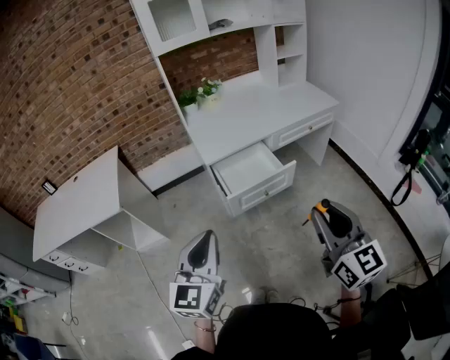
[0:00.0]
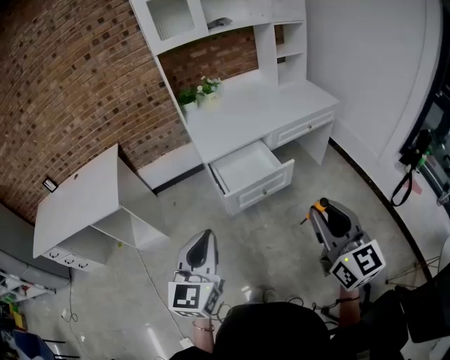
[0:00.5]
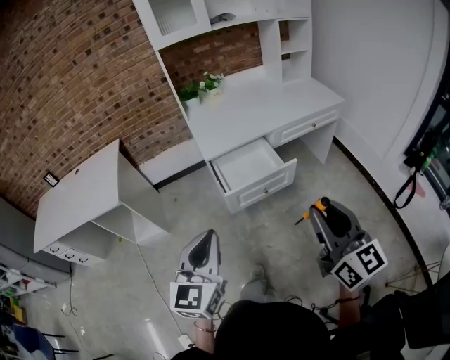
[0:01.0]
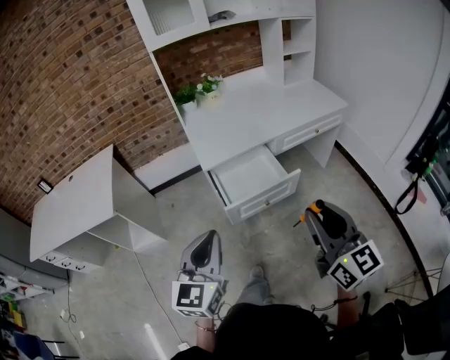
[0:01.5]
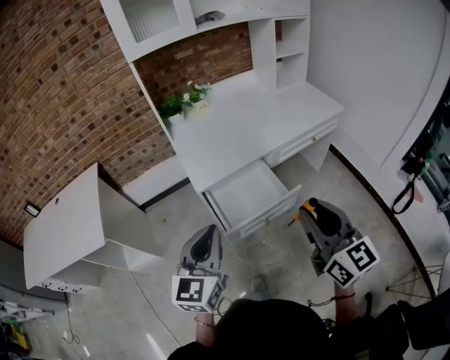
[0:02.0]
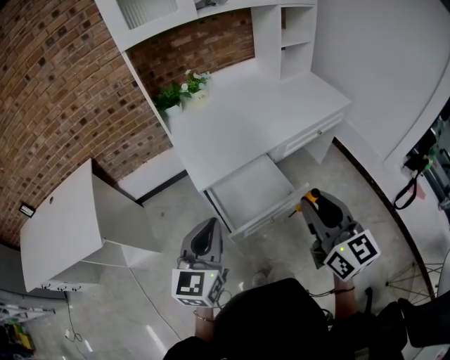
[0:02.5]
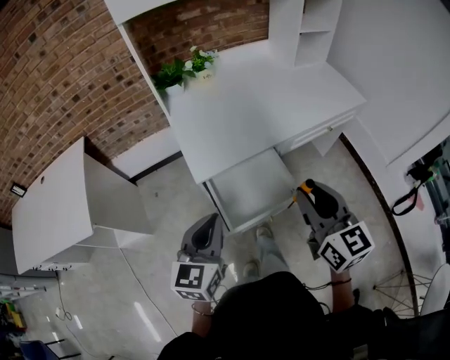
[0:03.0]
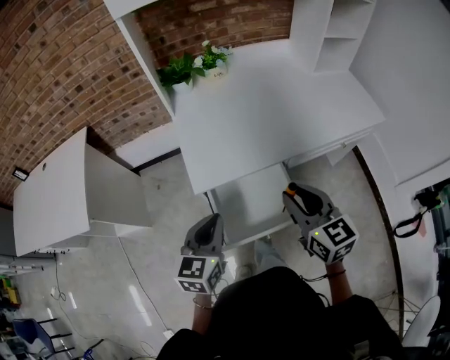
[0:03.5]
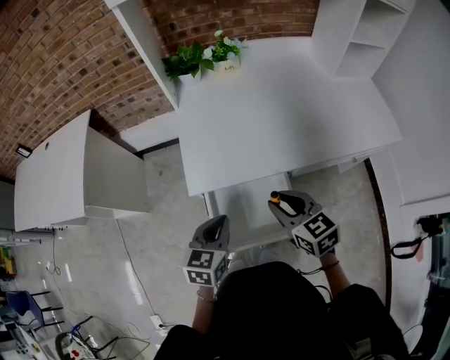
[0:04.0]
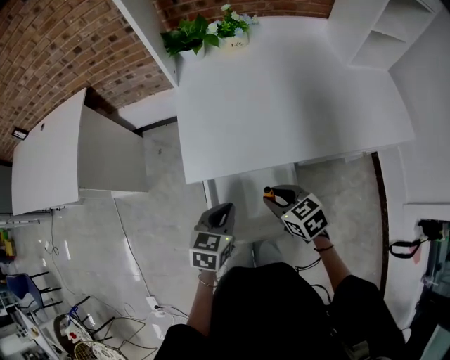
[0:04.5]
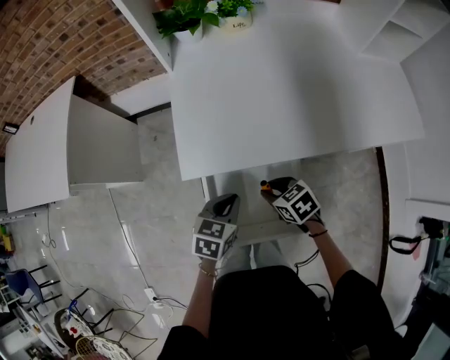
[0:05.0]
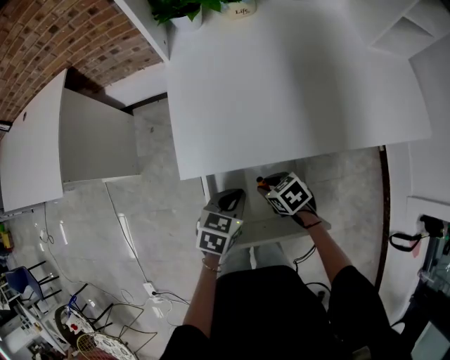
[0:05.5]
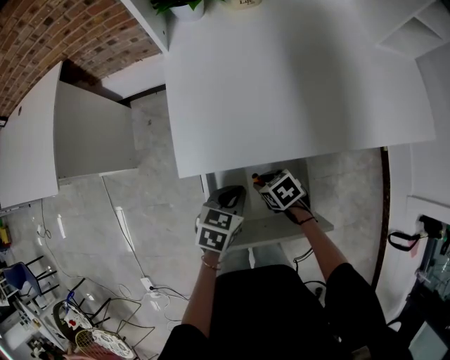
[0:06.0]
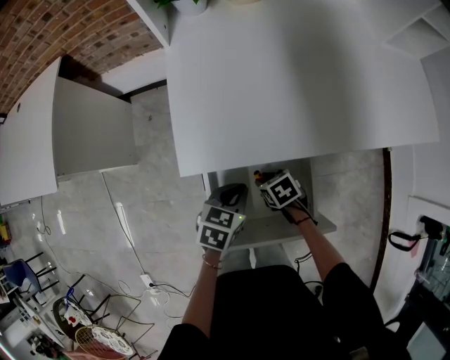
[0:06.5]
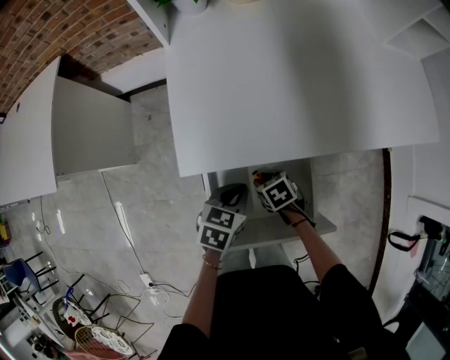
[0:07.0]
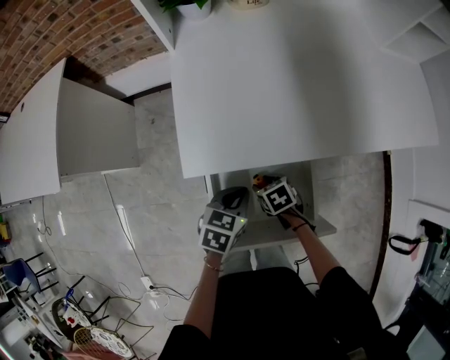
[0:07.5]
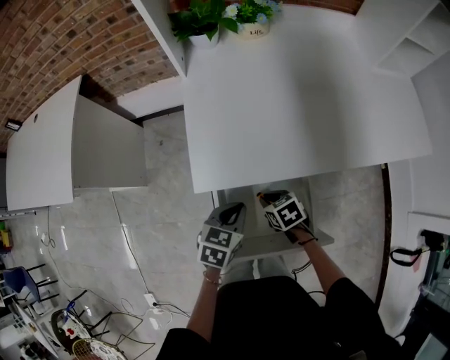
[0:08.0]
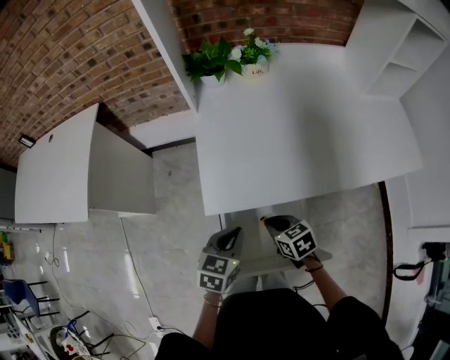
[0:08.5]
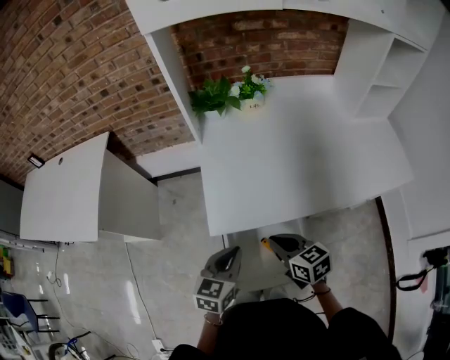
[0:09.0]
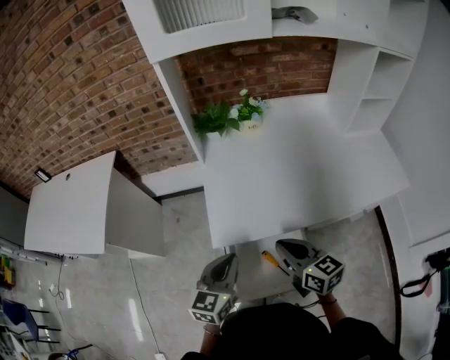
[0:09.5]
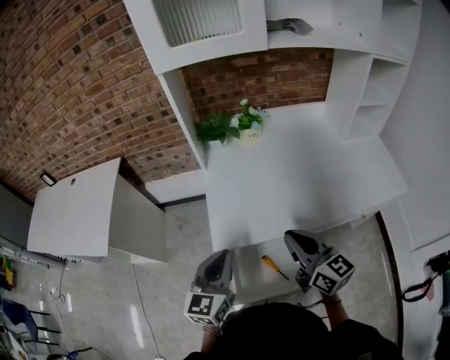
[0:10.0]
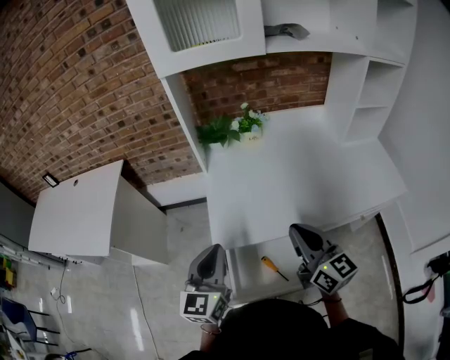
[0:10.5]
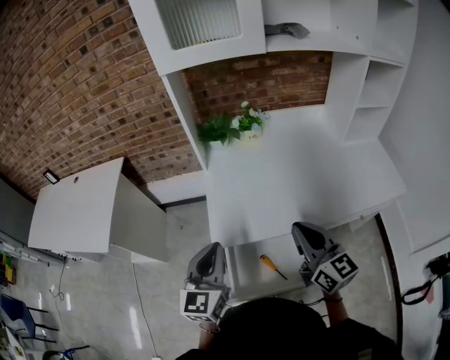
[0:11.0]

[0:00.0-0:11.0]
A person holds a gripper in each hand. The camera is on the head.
0:00.0 to 0:02.0: Both grippers travel together forward, approximately 20 cm.
0:02.0 to 0:03.5: Both grippers move forward and downward, about 25 cm. The right gripper rotates some 20 degrees, while the left gripper turns by some 20 degrees.
0:03.5 to 0:05.5: The right gripper moves downward, approximately 35 cm, and tips its fingers downward by about 40 degrees; the left gripper is displaced downward and to the right by about 25 cm, and swivels about 30 degrees.
0:05.5 to 0:07.5: The right gripper heads downward, covering approximately 5 cm.
0:07.5 to 0:09.0: The right gripper heads upward, covering approximately 30 cm, angles its fingers upward, by roughly 30 degrees, and closes up. The left gripper heads upward, covering about 15 cm, and swivels about 20 degrees.
0:09.0 to 0:11.0: The left gripper is displaced upward by about 15 cm, and rotates roughly 30 degrees; the right gripper heads upward and to the right, covering roughly 20 cm, and points its fingers approximately 30 degrees further upward.

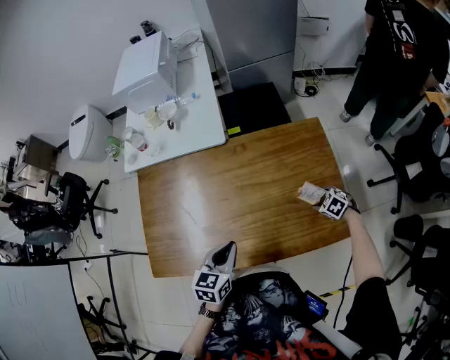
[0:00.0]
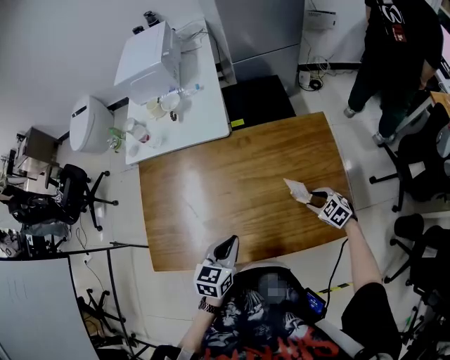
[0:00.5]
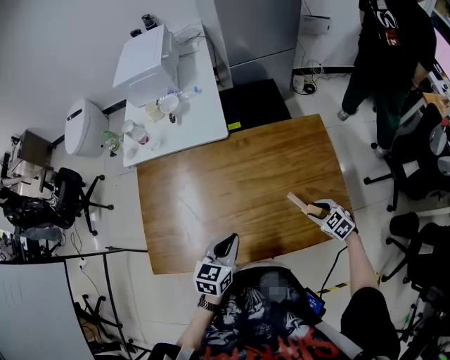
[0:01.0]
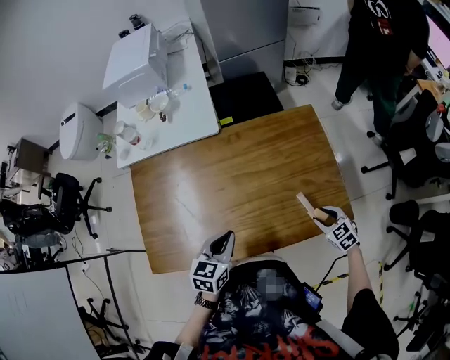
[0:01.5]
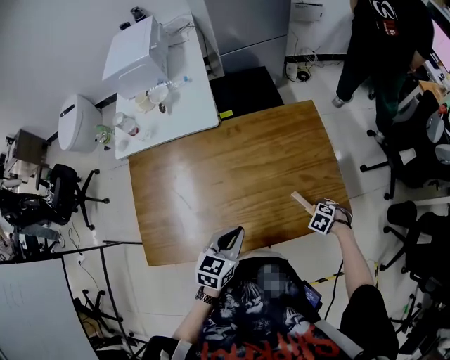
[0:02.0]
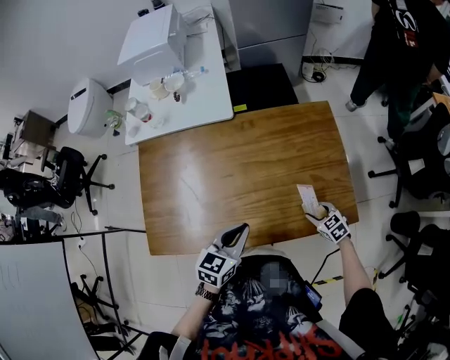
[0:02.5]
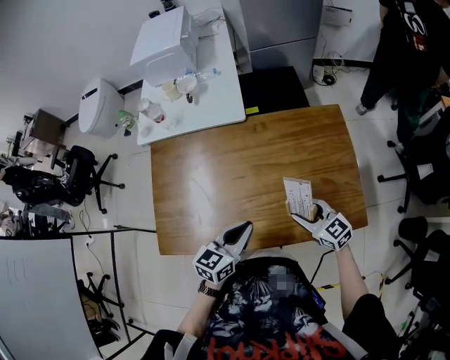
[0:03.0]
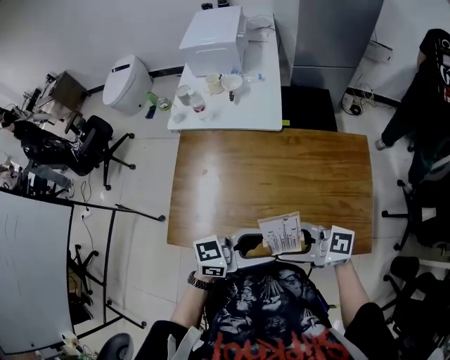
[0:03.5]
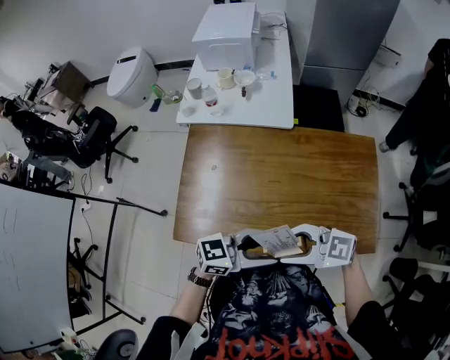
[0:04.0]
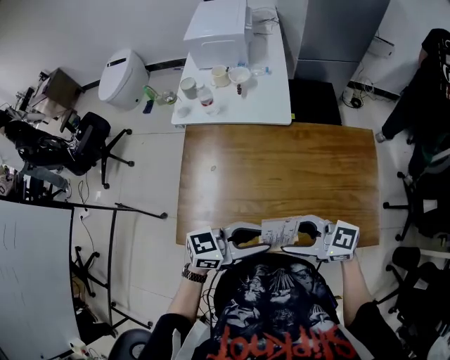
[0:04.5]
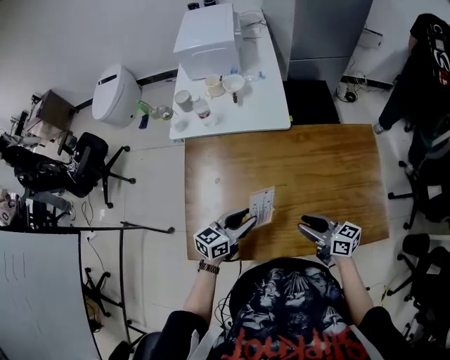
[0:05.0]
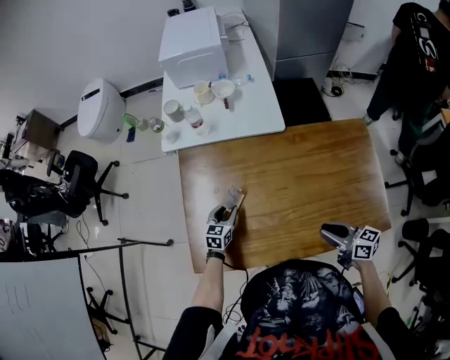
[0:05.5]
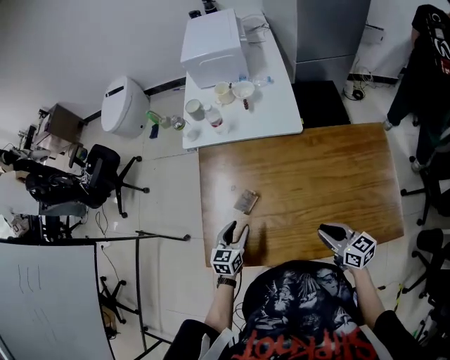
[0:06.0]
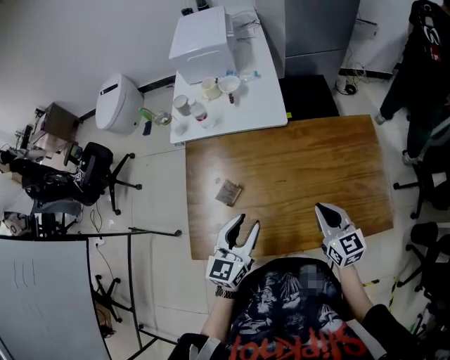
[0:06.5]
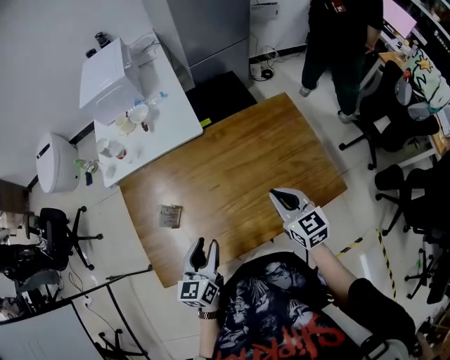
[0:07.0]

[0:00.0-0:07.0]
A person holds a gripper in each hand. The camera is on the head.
0:00.0 to 0:02.0: The right gripper travels upward and back again, approximately 10 cm each way.
0:02.0 to 0:03.5: The right gripper ends up roughly 50 cm from where it was, and angles its fingers upward, by some 80 degrees, while the left gripper goes about 10 cm upward, and angles its fingers upward, by roughly 40 degrees.
0:03.5 to 0:05.0: Both grippers move downward, some 20 cm. The left gripper swivels approximately 20 degrees. The right gripper rotates some 50 degrees.
0:05.0 to 0:07.0: The right gripper moves to the right and upward, approximately 15 cm, and rotates about 50 degrees. The left gripper heads backward, covering some 5 cm, and reaches roughly 20 cm downward, then returns.

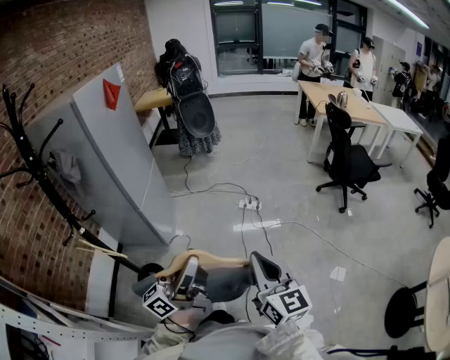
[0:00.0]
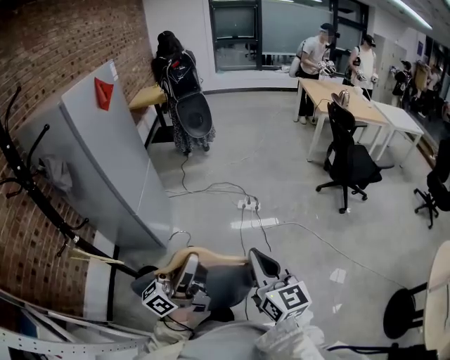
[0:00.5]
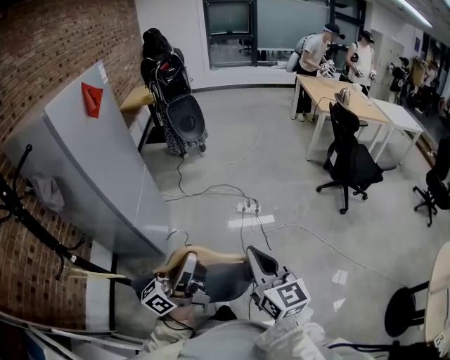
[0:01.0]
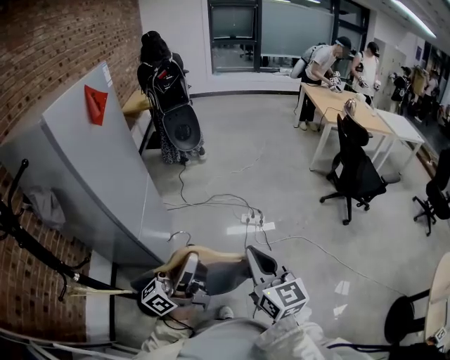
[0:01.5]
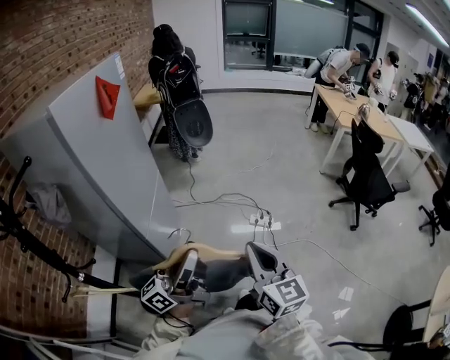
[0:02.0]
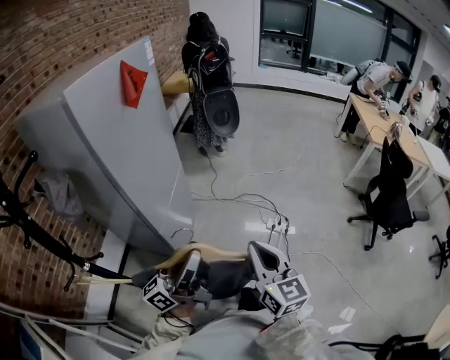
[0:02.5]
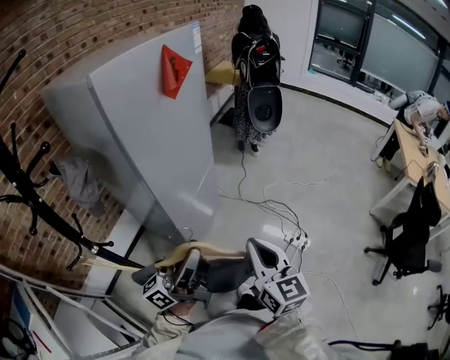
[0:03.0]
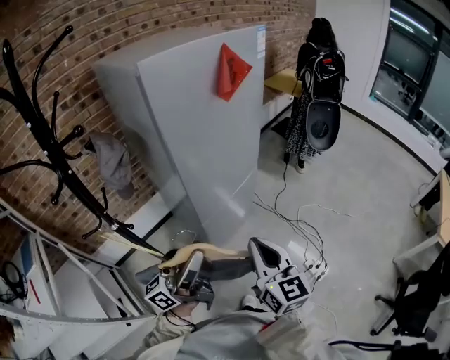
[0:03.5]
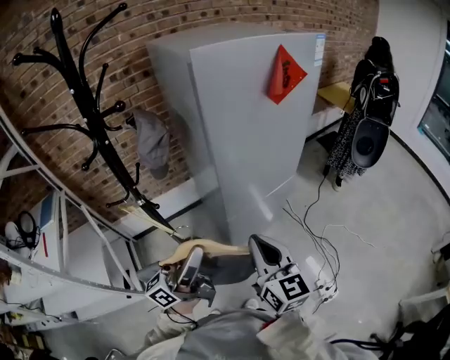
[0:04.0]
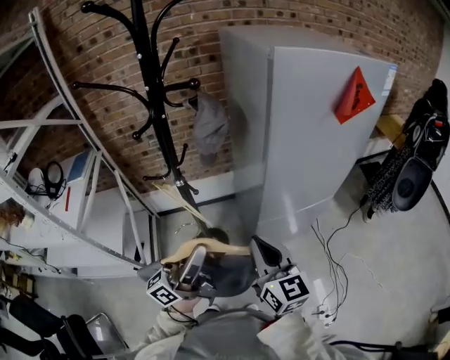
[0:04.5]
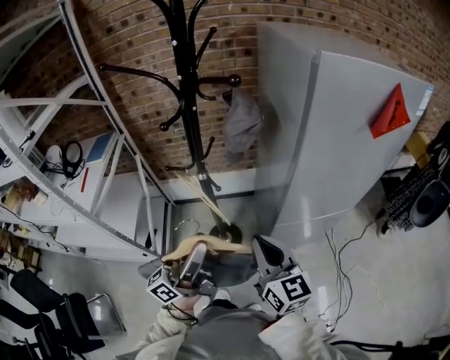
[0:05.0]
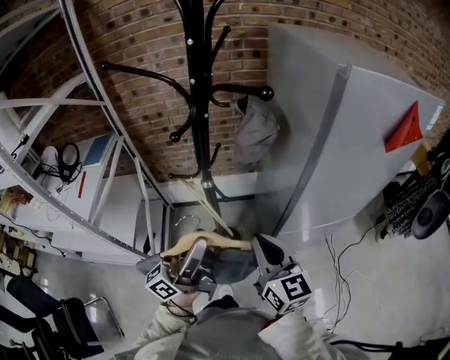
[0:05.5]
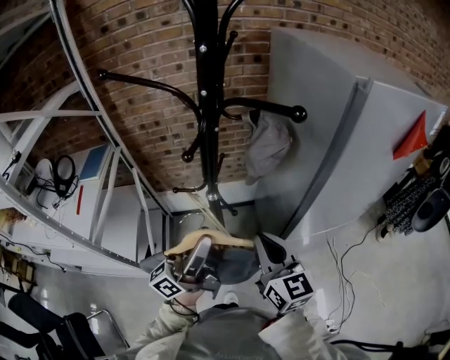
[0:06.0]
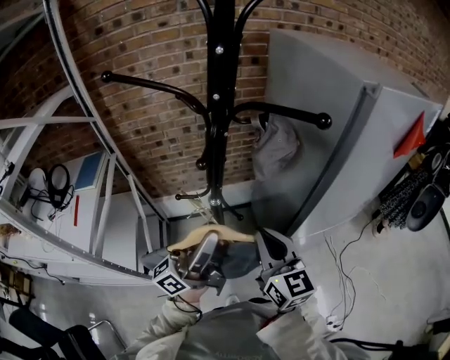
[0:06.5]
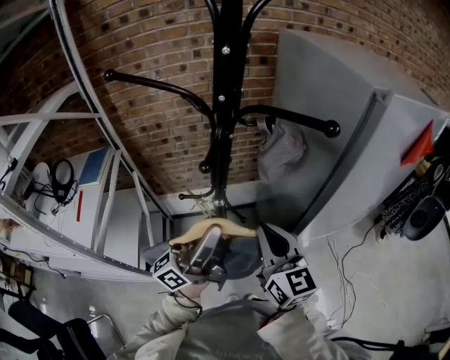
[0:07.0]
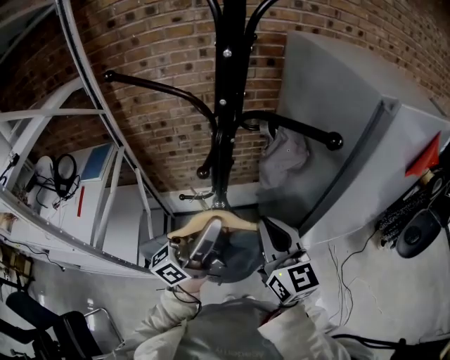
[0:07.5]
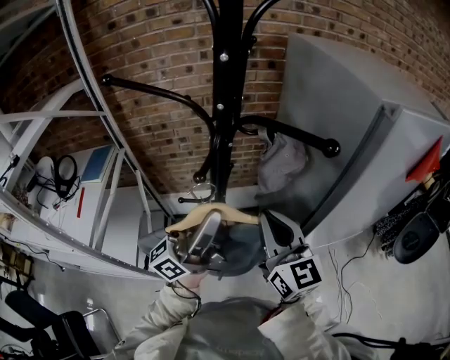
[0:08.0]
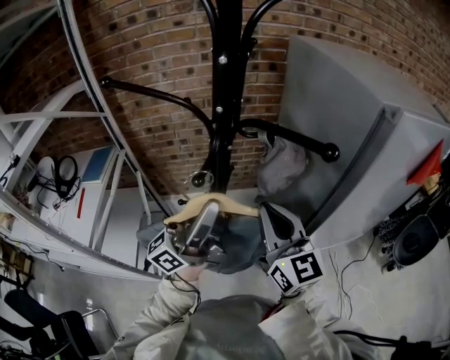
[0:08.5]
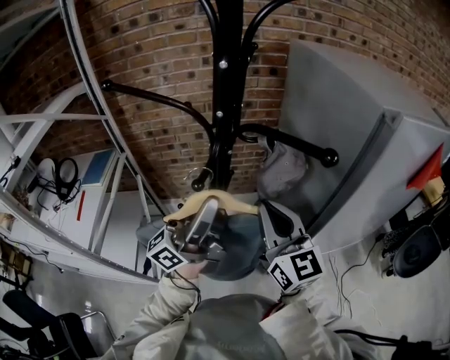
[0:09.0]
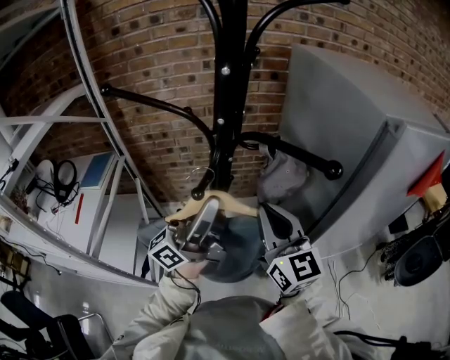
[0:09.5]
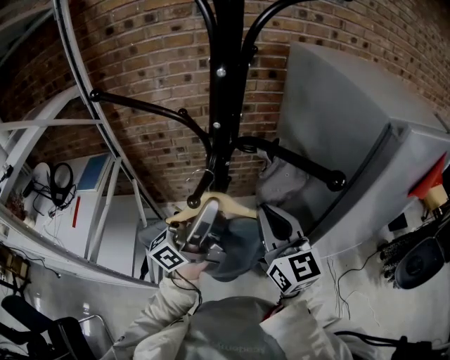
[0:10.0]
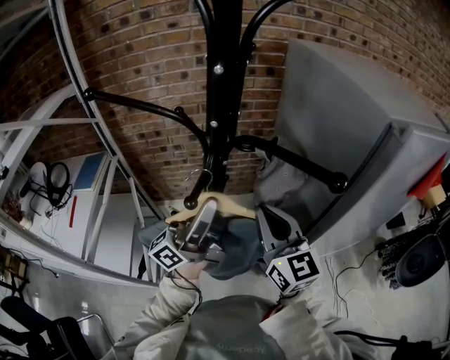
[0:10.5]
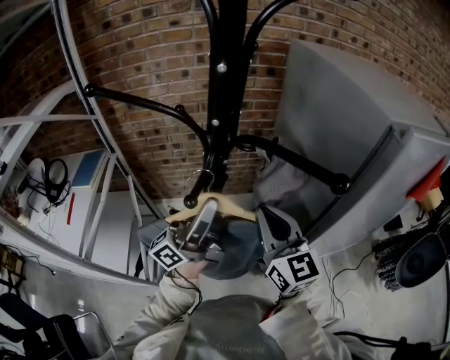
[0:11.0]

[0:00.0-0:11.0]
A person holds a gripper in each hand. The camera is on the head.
0:00.0 to 0:02.0: Both grippers move forward and to the left, roughly 35 cm.
0:02.0 to 0:03.5: The left gripper changes place by some 15 cm, and changes its angle by roughly 40 degrees; the right gripper shifts by approximately 25 cm, and changes its angle by approximately 40 degrees.
0:03.5 to 0:05.5: The left gripper shifts by approximately 20 cm, and rotates some 40 degrees. The right gripper changes place by approximately 25 cm, and changes its angle by about 40 degrees.
0:05.5 to 0:07.5: The two grippers go some 15 cm forward and to the left.
0:07.5 to 0:09.0: The right gripper shifts by approximately 5 cm. The left gripper changes place by approximately 5 cm.
0:09.0 to 0:11.0: The left gripper moves about 5 cm.
